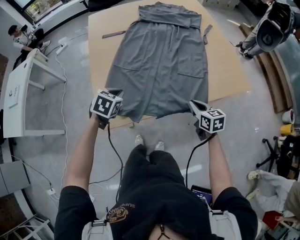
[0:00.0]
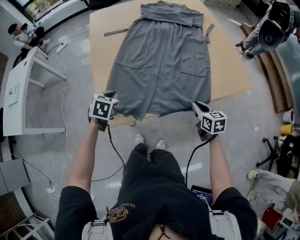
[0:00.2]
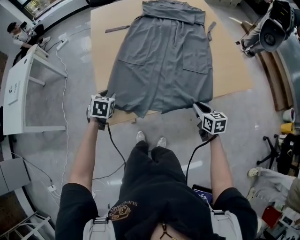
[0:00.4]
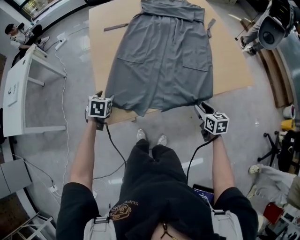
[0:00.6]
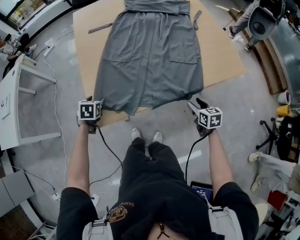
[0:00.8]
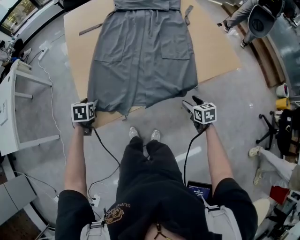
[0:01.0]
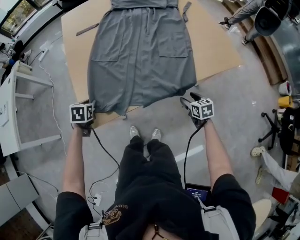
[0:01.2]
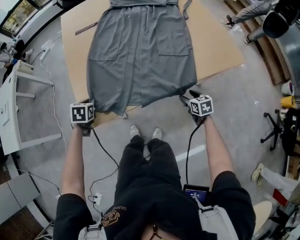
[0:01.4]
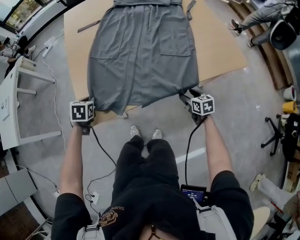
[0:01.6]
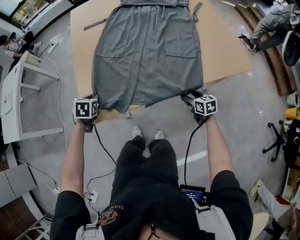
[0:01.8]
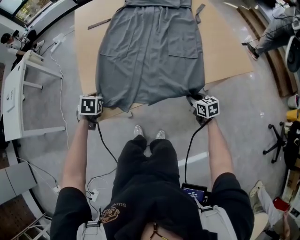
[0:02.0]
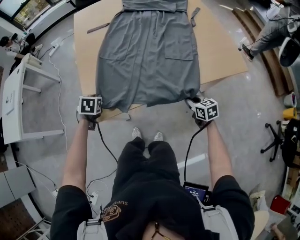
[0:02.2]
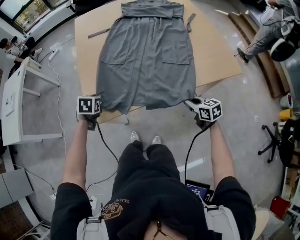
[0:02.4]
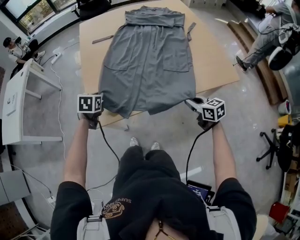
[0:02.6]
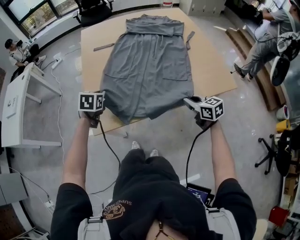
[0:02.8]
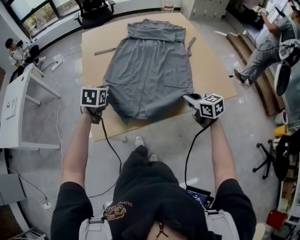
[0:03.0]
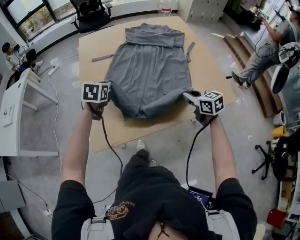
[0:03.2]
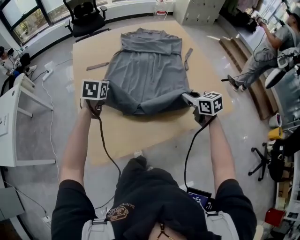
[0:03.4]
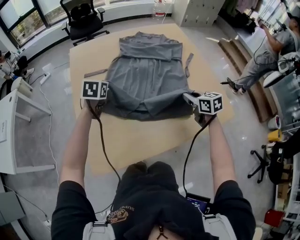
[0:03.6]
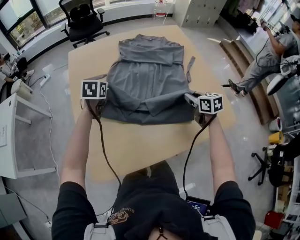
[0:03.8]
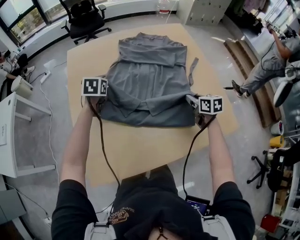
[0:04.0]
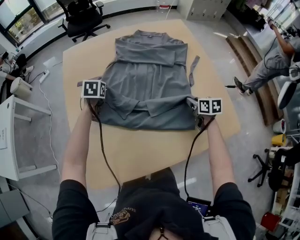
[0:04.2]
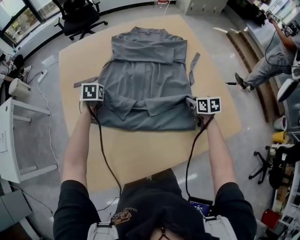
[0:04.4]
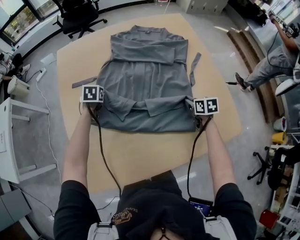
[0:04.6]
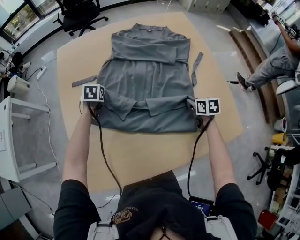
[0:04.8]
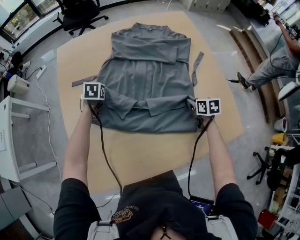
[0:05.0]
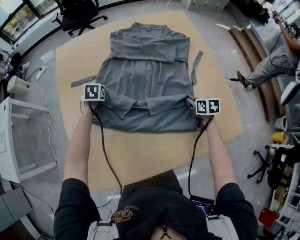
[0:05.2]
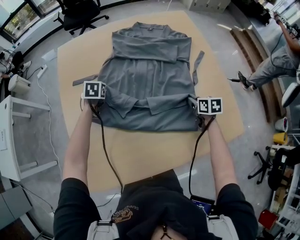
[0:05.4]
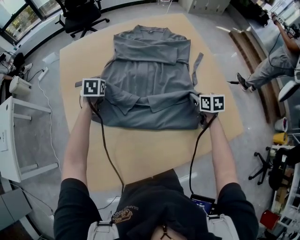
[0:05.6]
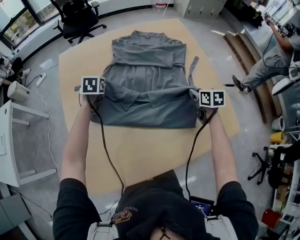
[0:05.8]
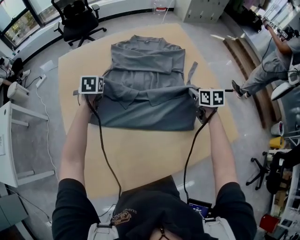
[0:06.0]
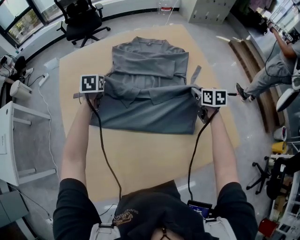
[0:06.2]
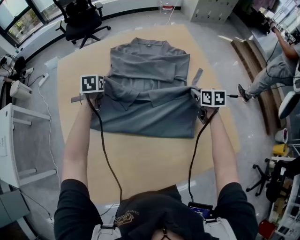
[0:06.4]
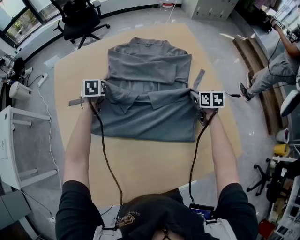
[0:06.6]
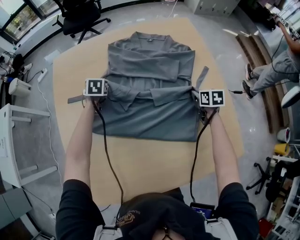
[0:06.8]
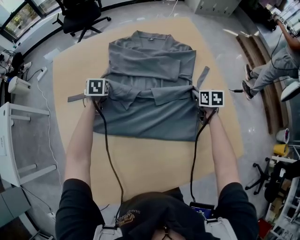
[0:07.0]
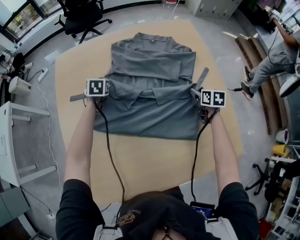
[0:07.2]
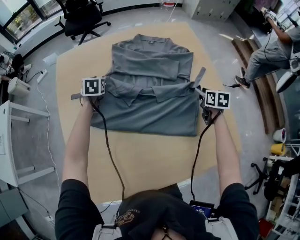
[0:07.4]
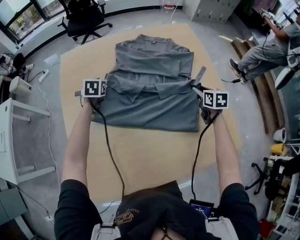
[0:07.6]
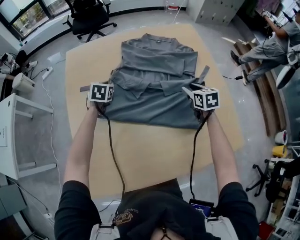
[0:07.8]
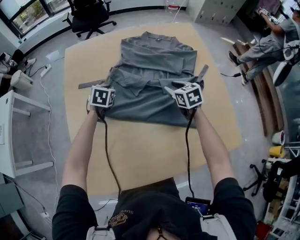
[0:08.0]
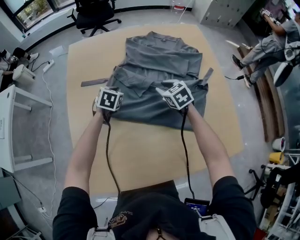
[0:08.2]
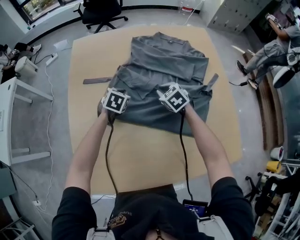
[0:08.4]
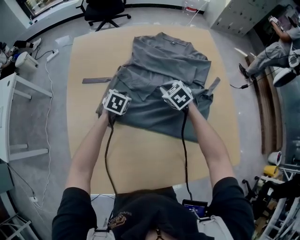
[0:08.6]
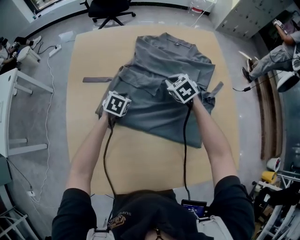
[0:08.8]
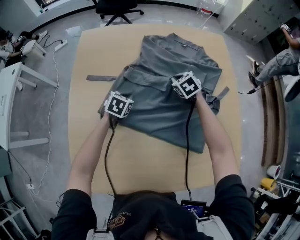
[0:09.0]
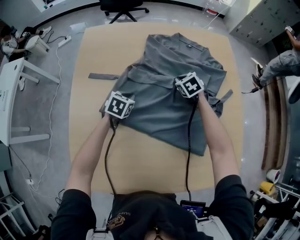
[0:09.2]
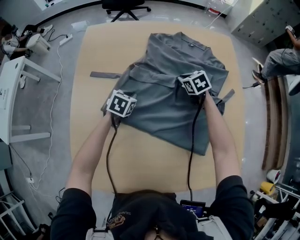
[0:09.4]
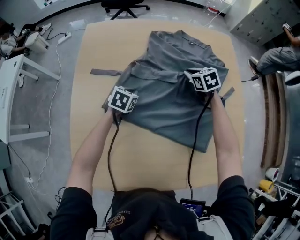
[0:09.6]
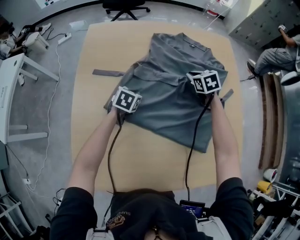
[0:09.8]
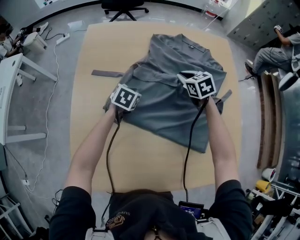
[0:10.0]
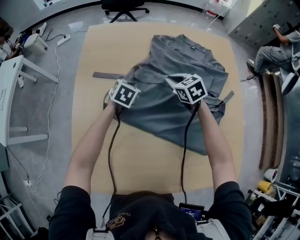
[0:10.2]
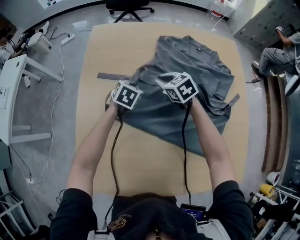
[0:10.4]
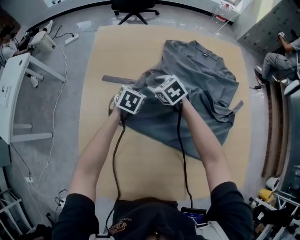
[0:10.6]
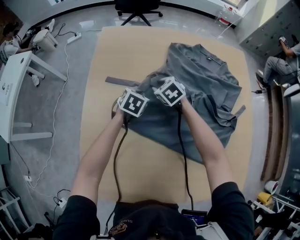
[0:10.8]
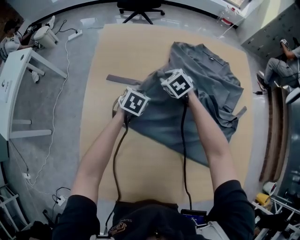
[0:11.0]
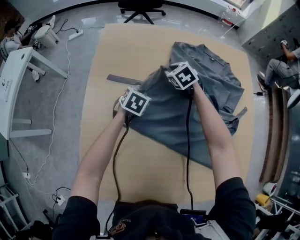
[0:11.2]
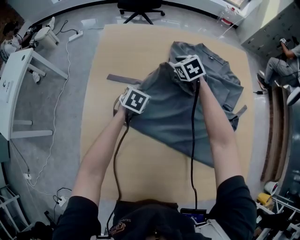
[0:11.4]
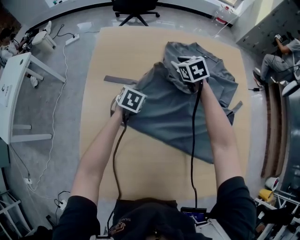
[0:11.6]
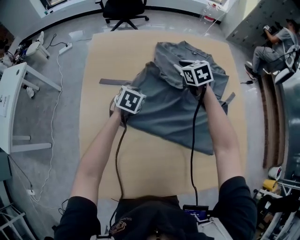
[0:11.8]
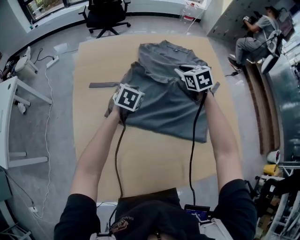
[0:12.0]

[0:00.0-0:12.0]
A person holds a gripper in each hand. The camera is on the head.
0:00.0 to 0:01.6: The left gripper shifts approximately 15 cm downward and to the left, and opens and closes again. The right gripper heads downward and to the right, covering some 20 cm, and opens its fingers.
0:01.6 to 0:03.0: The left gripper heads upward, to the right and forward, covering about 20 cm; the right gripper shifts approximately 25 cm upward, turns by some 20 degrees, and closes its fingers.
0:03.0 to 0:04.4: The right gripper is displaced forward, to the right and downward by some 30 cm, and changes its angle by roughly 30 degrees, while the left gripper moves forward, some 30 cm.
0:04.4 to 0:06.0: The two grippers go approximately 10 cm upward and forward.
0:06.0 to 0:07.6: The right gripper reaches roughly 10 cm downward, then returns, and opens up, while the left gripper reaches approximately 10 cm downward, then returns, and opens its fingers.
0:07.6 to 0:09.0: The right gripper moves to the left and forward, about 25 cm, rolls counterclockwise, seen from behind, by approximately 50 degrees, and closes; the left gripper shifts roughly 15 cm backward, downward and to the right, and closes up.
0:09.0 to 0:10.4: The right gripper goes some 15 cm to the left. Meanwhile the left gripper goes about 5 cm forward.
0:10.4 to 0:12.0: The right gripper goes roughly 20 cm to the right and upward, and turns by some 30 degrees, while the left gripper travels upward by roughly 5 cm.

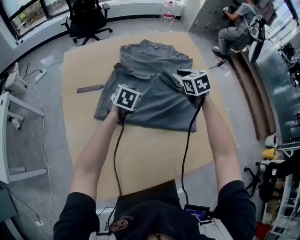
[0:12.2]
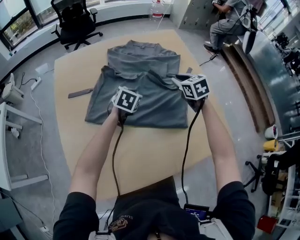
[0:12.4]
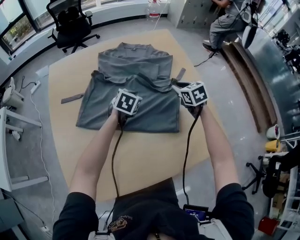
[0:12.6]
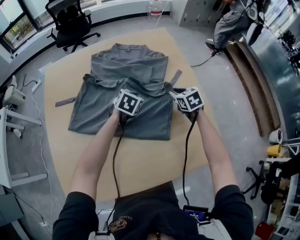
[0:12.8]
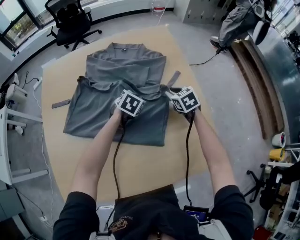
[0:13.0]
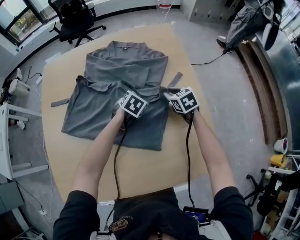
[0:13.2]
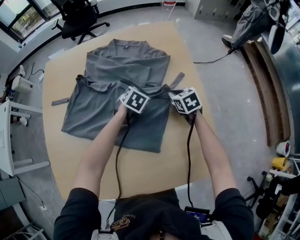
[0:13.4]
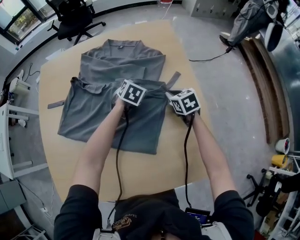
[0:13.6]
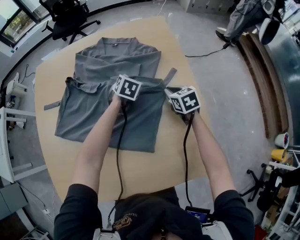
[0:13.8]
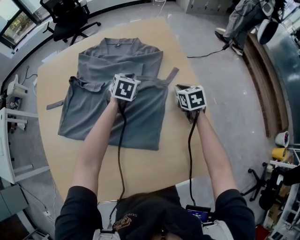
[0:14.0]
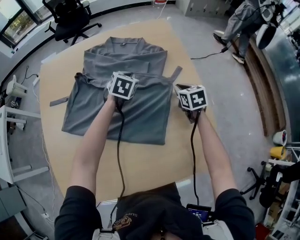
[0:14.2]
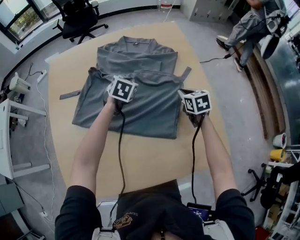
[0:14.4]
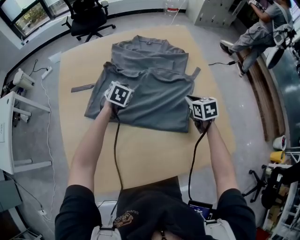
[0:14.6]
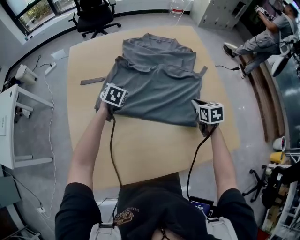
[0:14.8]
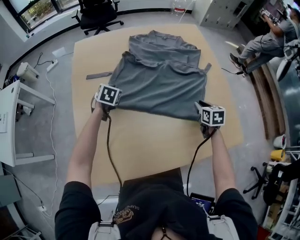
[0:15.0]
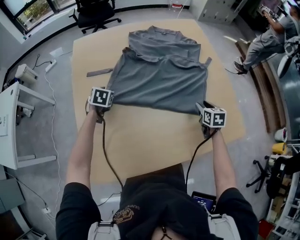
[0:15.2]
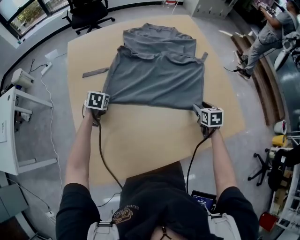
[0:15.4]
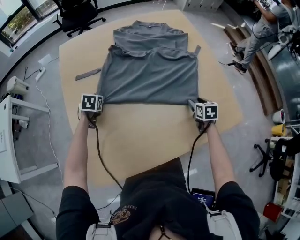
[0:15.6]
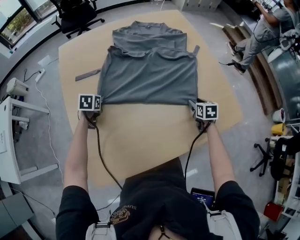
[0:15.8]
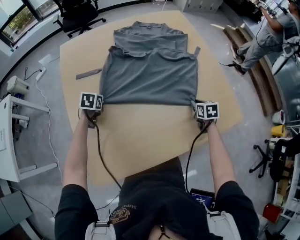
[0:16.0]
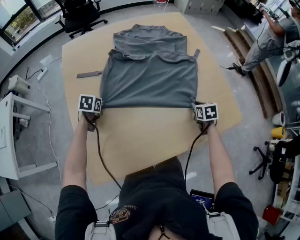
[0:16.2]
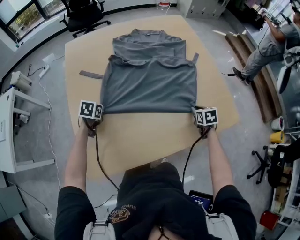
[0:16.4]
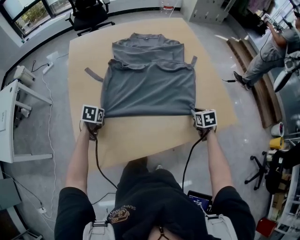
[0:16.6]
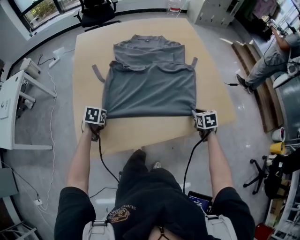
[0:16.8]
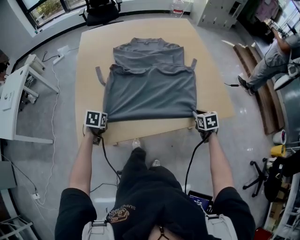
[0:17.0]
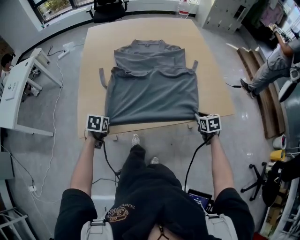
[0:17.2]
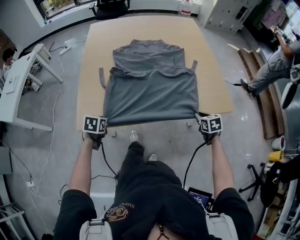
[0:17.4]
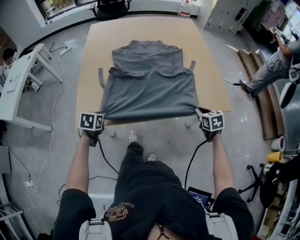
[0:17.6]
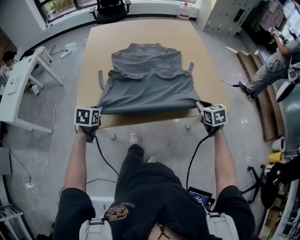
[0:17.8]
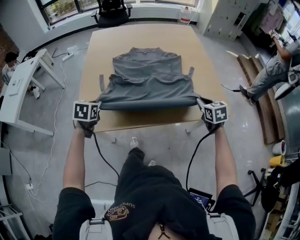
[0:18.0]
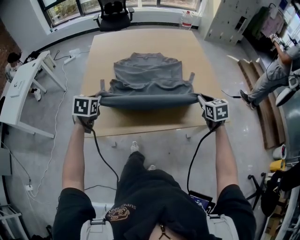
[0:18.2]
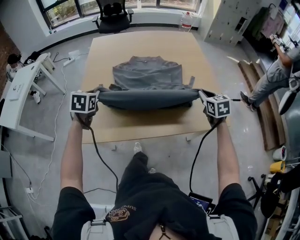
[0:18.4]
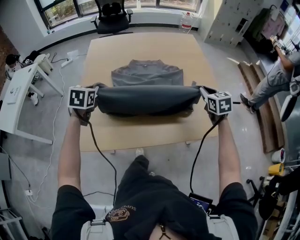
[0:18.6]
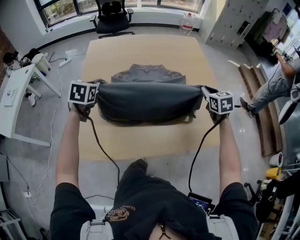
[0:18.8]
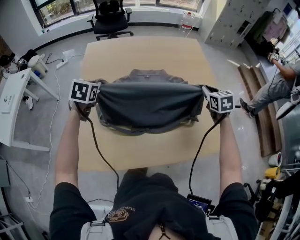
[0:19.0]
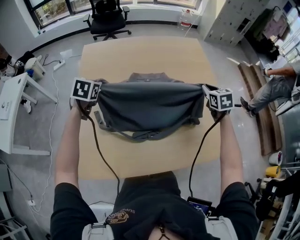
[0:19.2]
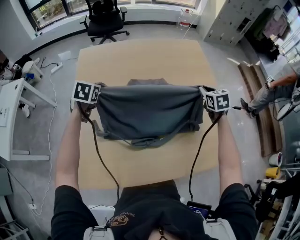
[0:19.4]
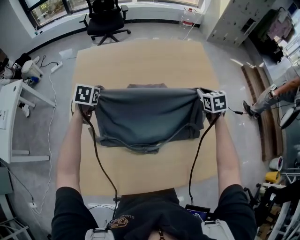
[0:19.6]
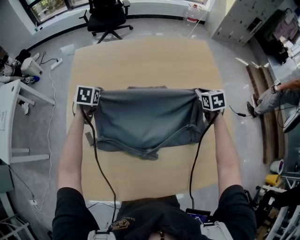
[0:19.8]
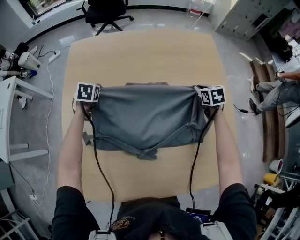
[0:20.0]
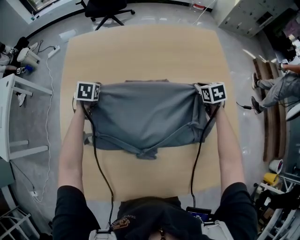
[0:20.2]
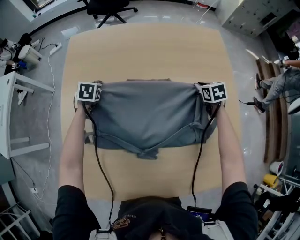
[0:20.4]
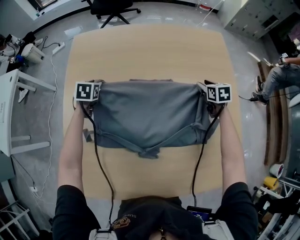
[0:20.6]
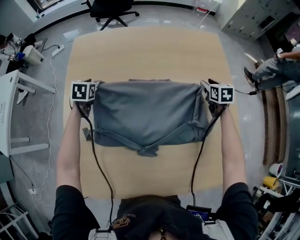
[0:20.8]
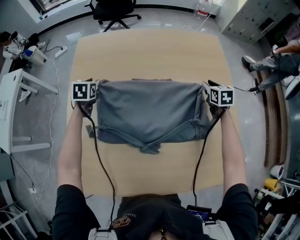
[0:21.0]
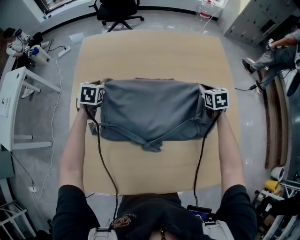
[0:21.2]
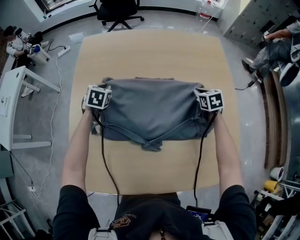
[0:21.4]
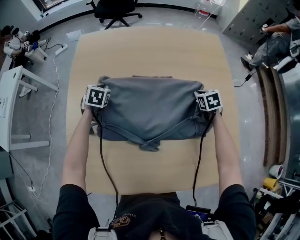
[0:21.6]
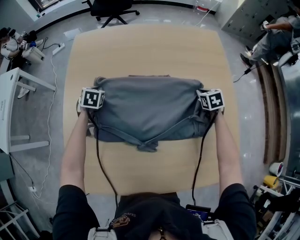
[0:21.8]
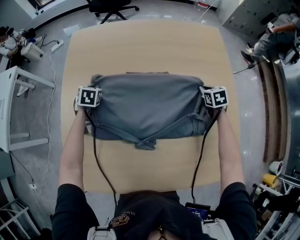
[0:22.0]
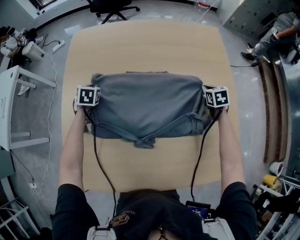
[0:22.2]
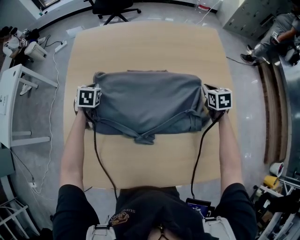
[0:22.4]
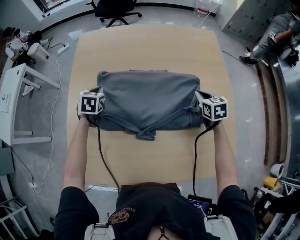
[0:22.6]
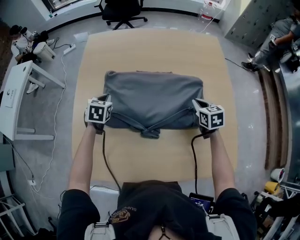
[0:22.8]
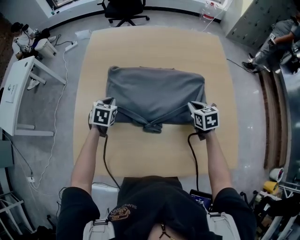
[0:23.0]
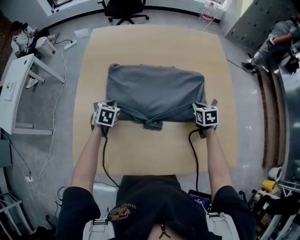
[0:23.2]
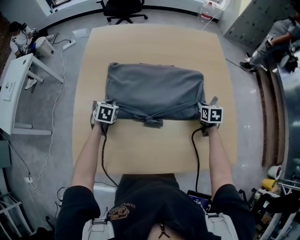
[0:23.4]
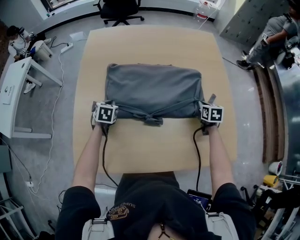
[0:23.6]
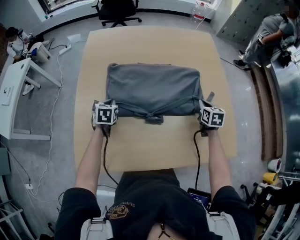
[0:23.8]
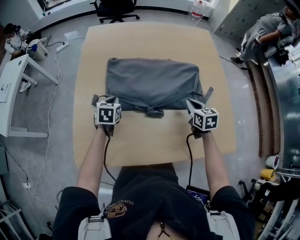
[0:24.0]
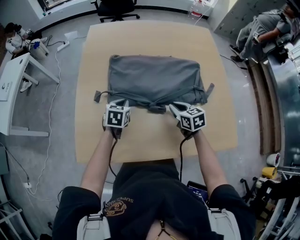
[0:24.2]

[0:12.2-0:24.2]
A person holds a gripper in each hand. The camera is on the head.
0:12.2 to 0:13.8: The right gripper is displaced to the right and downward by about 25 cm; the left gripper goes approximately 30 cm to the right and forward.
0:13.8 to 0:15.2: The right gripper travels backward and to the left by roughly 25 cm, changes its angle by about 20 degrees, and opens its fingers, while the left gripper heads to the left and backward, covering some 50 cm, and opens.
0:15.2 to 0:16.6: The left gripper shifts roughly 15 cm backward, and closes its fingers. Meanwhile the right gripper travels backward and to the right by some 10 cm, and closes up.
0:16.6 to 0:18.2: The left gripper travels upward and backward by approximately 20 cm, and changes its angle by roughly 20 degrees; the right gripper is displaced upward by approximately 15 cm, and turns by approximately 30 degrees.
0:18.2 to 0:19.8: Both grippers move forward, some 40 cm.
0:19.8 to 0:21.2: The left gripper opens and closes again, while the right gripper goes downward and returns, some 10 cm each way, and opens, then closes again.
0:21.2 to 0:22.6: The two grippers go roughly 10 cm backward. The left gripper travels downward and back again, roughly 5 cm each way.
0:22.6 to 0:24.2: The right gripper swings left and right, approximately 20 cm each way, with 2 reversals. The left gripper goes some 20 cm backward.
